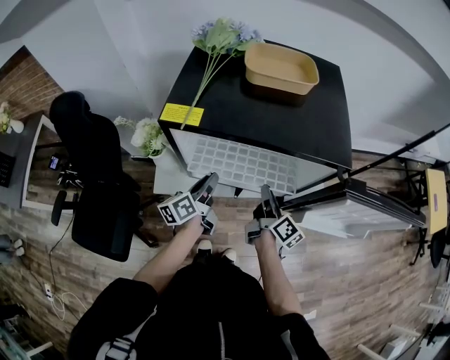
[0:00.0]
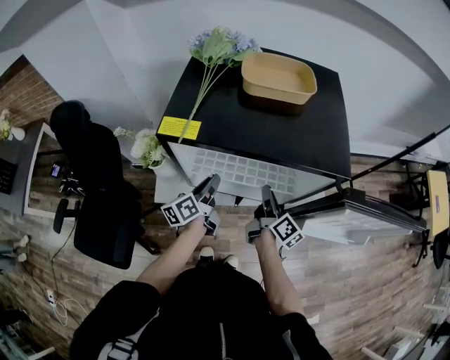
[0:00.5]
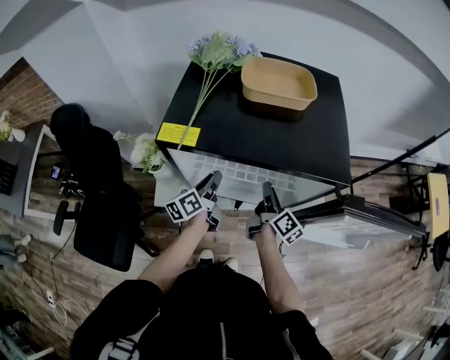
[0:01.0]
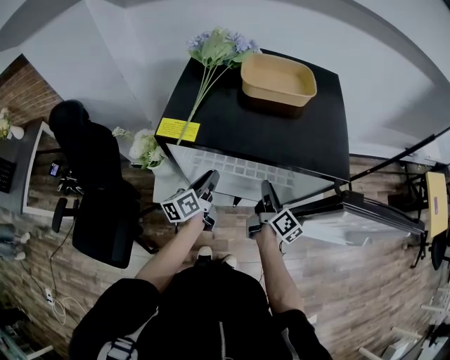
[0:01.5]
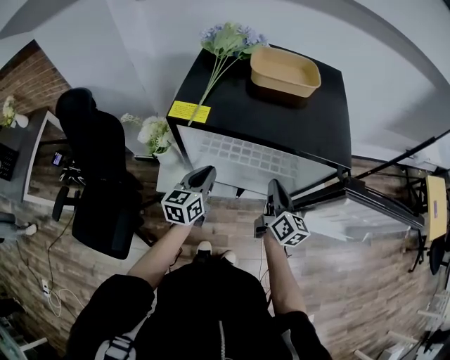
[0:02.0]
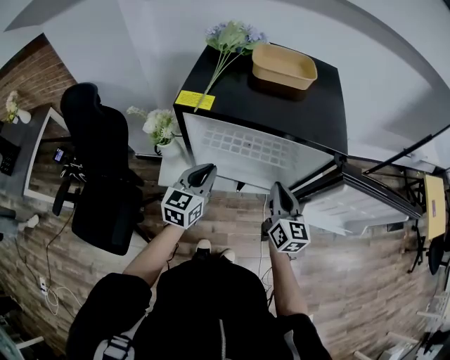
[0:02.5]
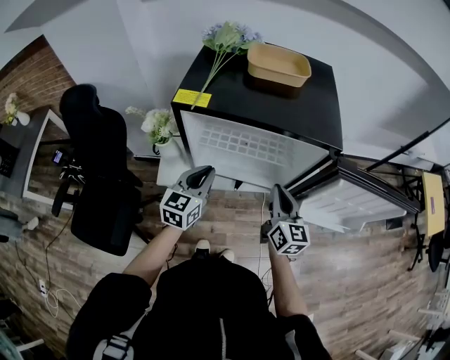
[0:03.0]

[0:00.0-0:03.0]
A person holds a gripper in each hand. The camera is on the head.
0:00.0 to 0:01.5: The right gripper travels forward by about 5 cm.
0:01.5 to 0:03.0: The grippers both shift backward and upward by roughly 10 cm. The right gripper rotates around the line of its fingers by some 40 degrees, counterclockwise from behind. Meanwhile the left gripper twists about 40 degrees clockwise, seen from behind.

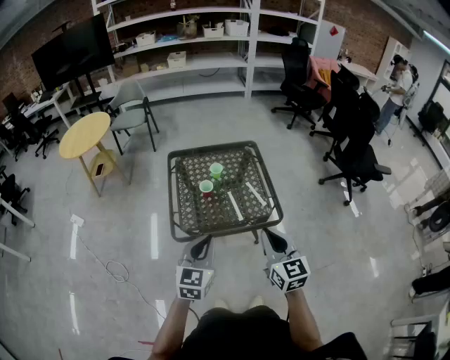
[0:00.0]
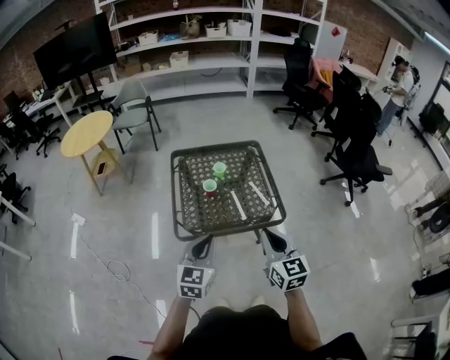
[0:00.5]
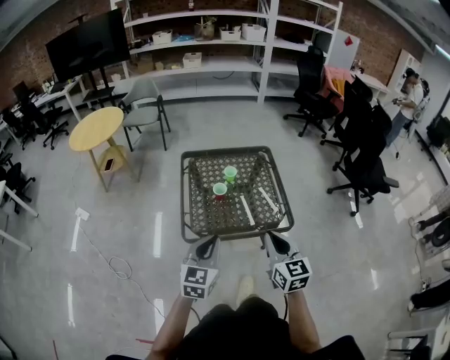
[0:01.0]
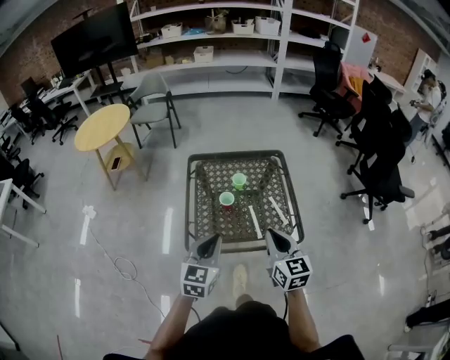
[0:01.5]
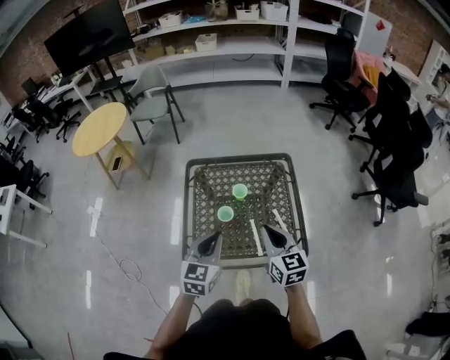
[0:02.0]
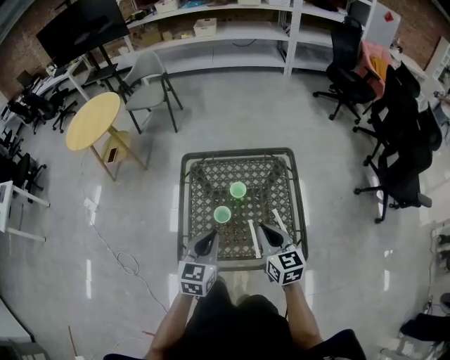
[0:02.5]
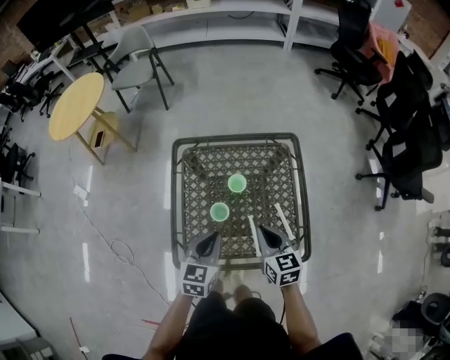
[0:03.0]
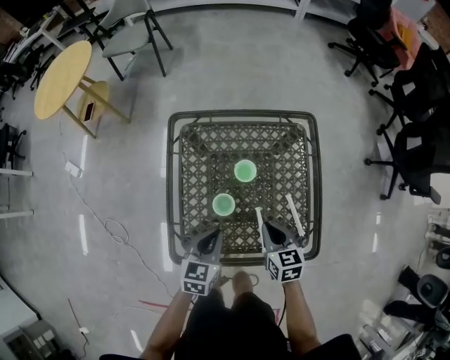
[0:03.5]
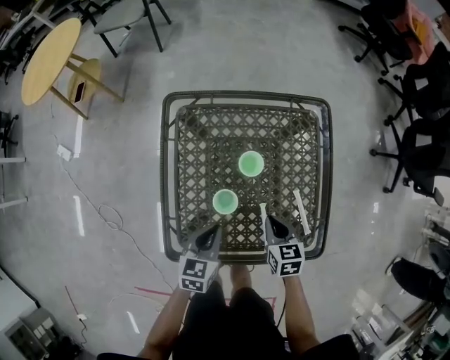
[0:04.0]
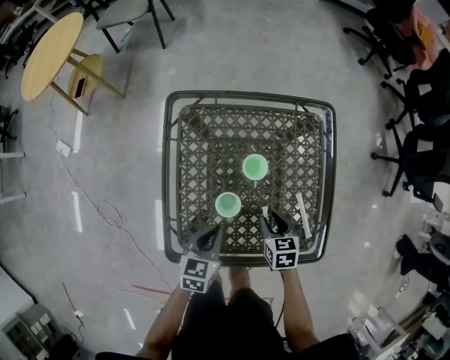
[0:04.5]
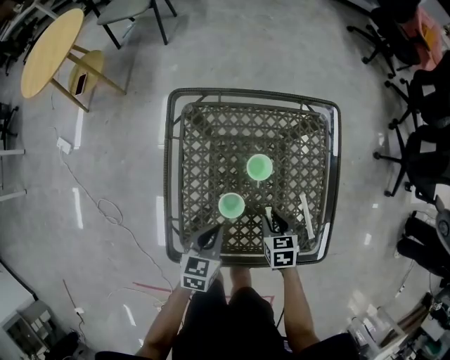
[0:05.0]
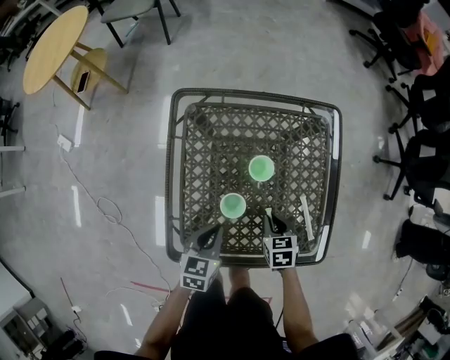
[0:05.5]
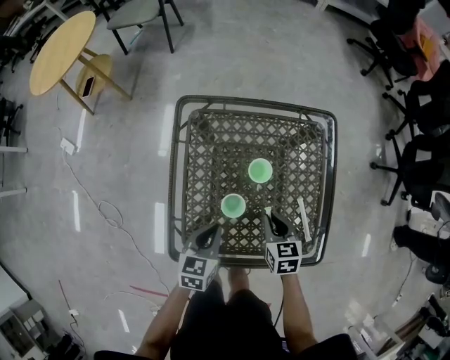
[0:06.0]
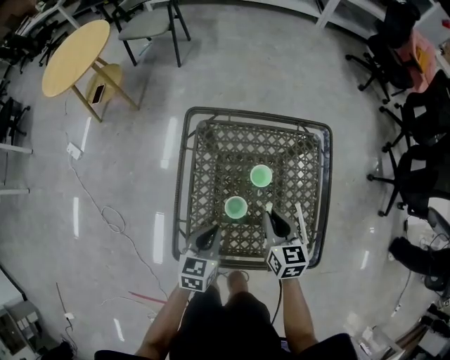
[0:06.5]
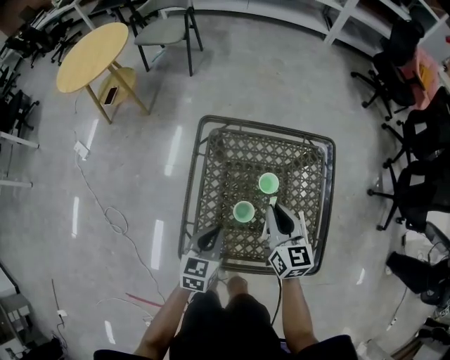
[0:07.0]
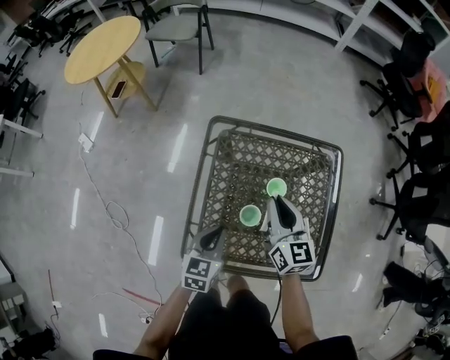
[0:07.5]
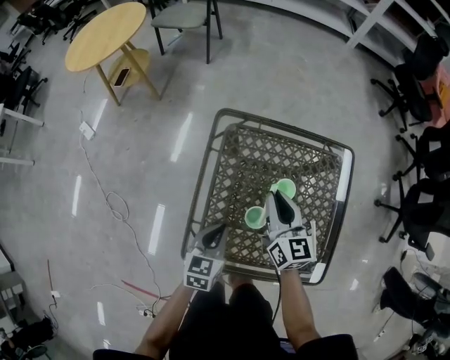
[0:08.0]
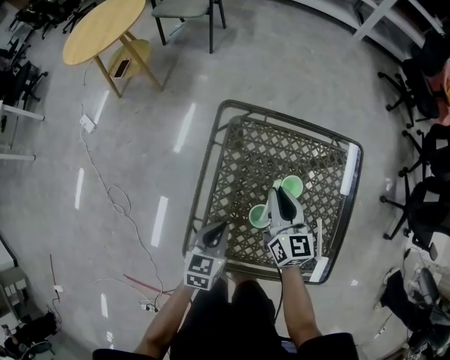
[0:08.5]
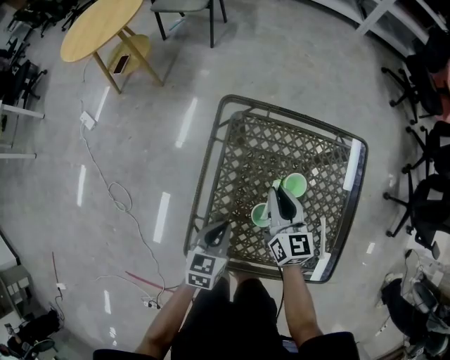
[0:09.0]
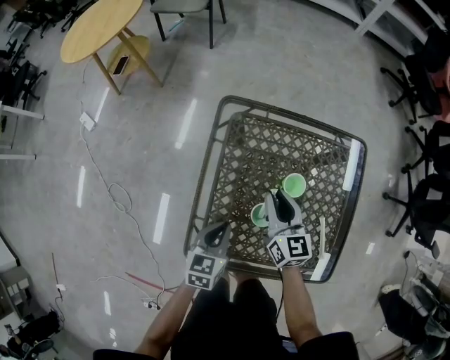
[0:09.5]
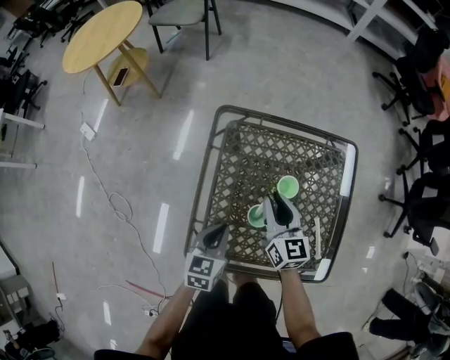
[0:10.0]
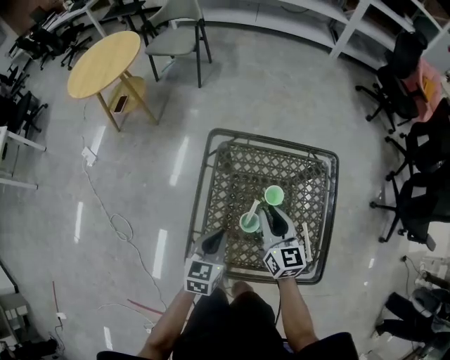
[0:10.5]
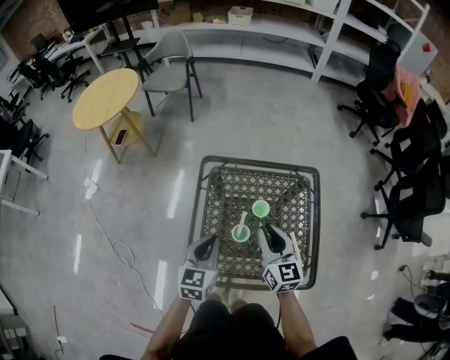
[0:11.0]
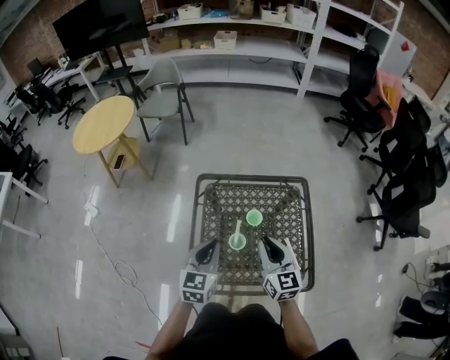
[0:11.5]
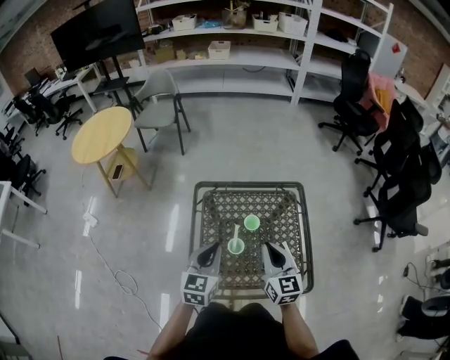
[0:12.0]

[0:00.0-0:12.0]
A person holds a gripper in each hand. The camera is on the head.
0:00.0 to 0:02.0: The two grippers go some 25 cm forward.
0:02.0 to 0:04.0: Both grippers travel together downward, about 30 cm. The left gripper swivels approximately 30 degrees, while the right gripper points its fingers approximately 30 degrees further downward.
0:04.0 to 0:06.0: The right gripper opens, then closes once more.
0:06.0 to 0:08.0: The right gripper shifts roughly 20 cm upward, forward and to the left, and tilts its fingers some 30 degrees upward, while the left gripper moves to the left, approximately 5 cm.
0:10.0 to 0:12.0: The right gripper goes some 25 cm upward, backward and to the right. Meanwhile the left gripper is displaced upward by about 25 cm, and changes its angle by some 20 degrees.

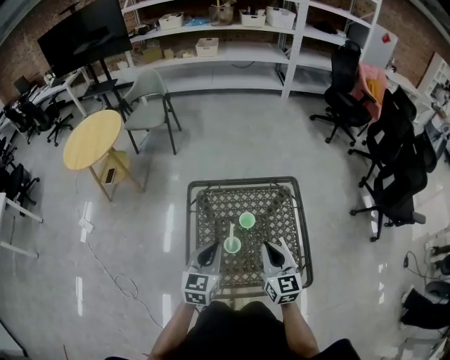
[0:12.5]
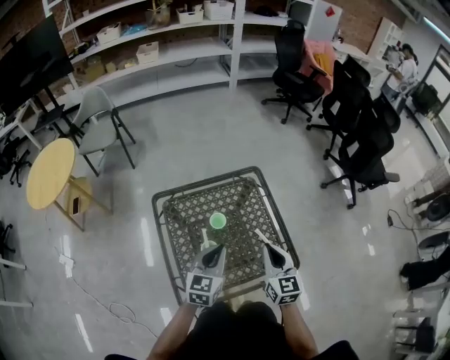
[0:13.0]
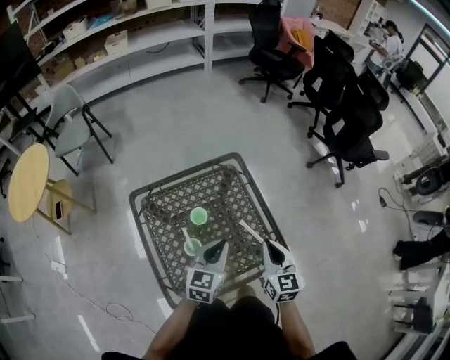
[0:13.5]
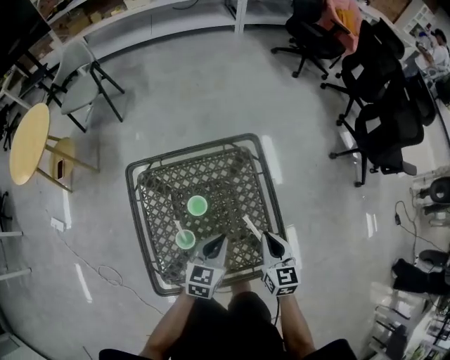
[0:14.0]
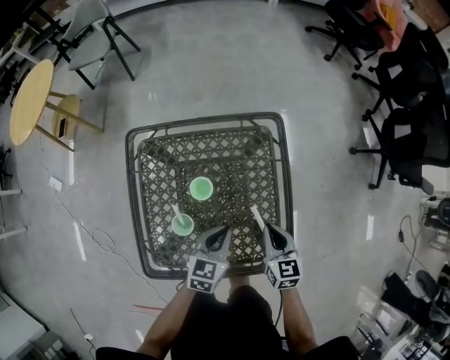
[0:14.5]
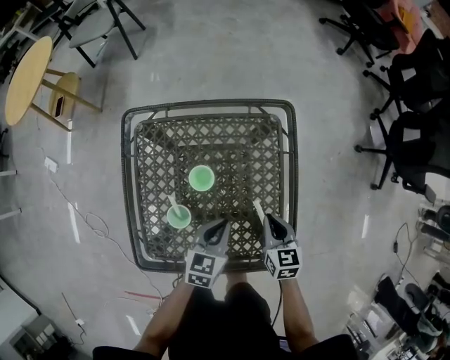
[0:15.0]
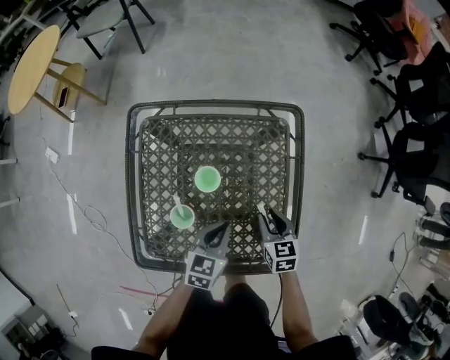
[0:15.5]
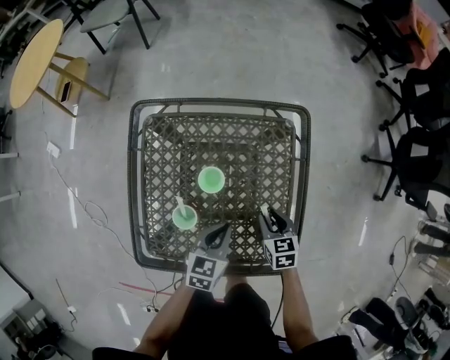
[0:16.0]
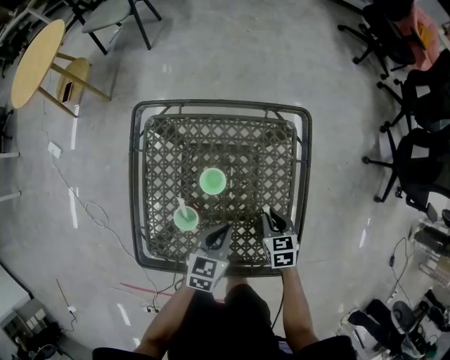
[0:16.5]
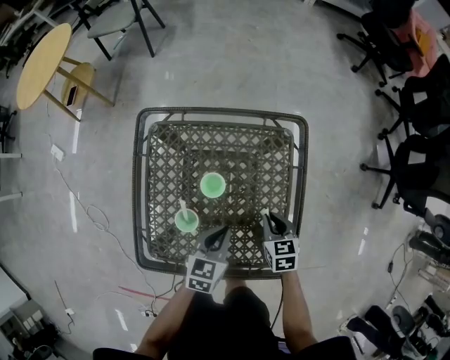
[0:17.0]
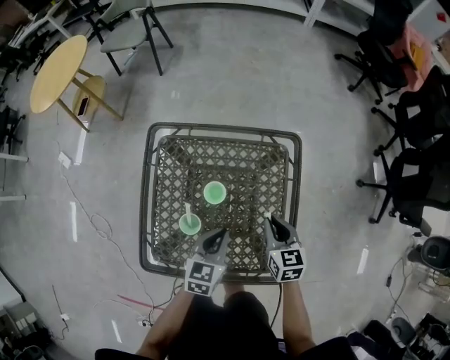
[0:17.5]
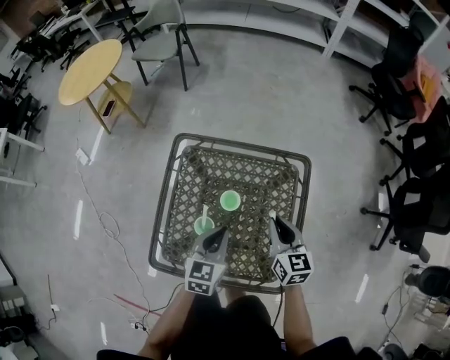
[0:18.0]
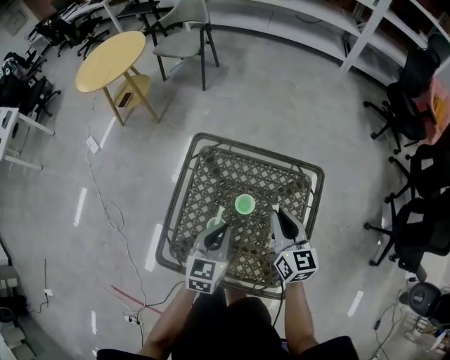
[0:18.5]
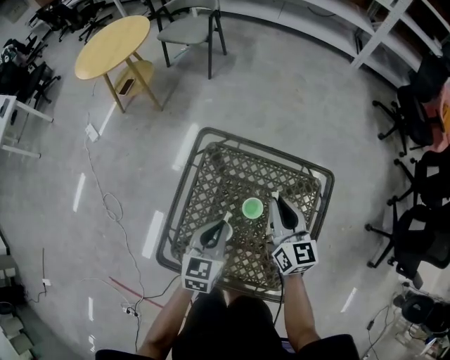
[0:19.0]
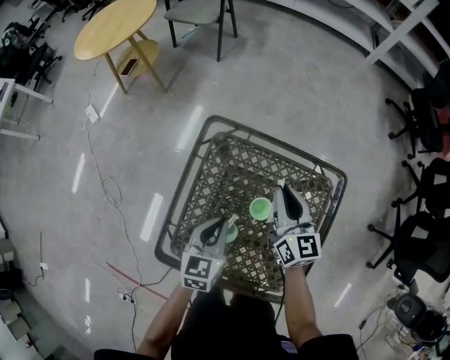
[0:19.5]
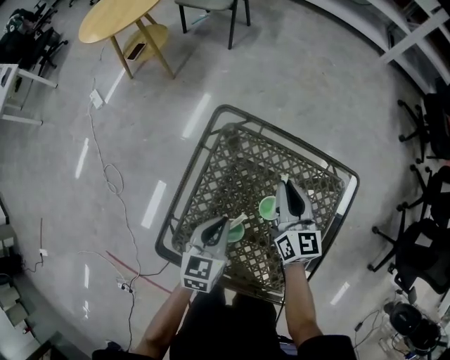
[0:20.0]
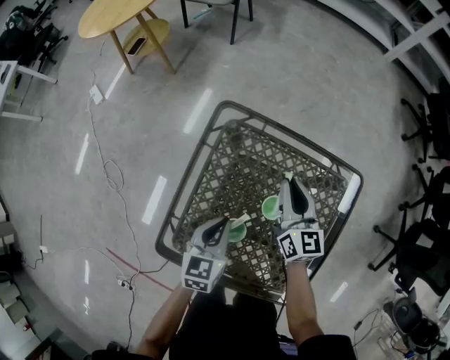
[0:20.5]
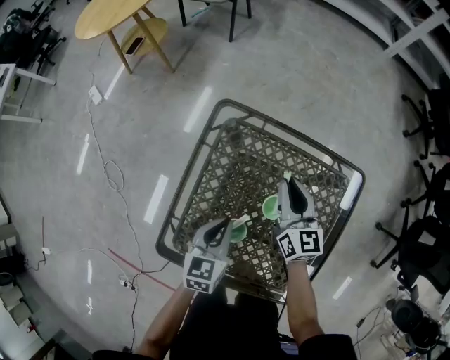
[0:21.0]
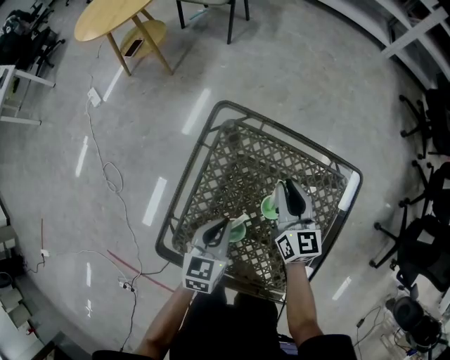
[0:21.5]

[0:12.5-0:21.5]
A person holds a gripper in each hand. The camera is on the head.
0:12.5 to 0:14.5: The two grippers go approximately 20 cm downward. The right gripper rotates roughly 20 degrees. Meanwhile the left gripper changes its angle by about 20 degrees.
0:14.5 to 0:17.0: The right gripper goes some 10 cm downward, and turns by approximately 20 degrees.
0:17.0 to 0:19.5: The left gripper moves to the left, upward and forward, approximately 20 cm, and swivels some 20 degrees. Meanwhile the right gripper moves upward, forward and to the left, approximately 30 cm, and tips its fingers upward by approximately 40 degrees.
0:19.5 to 0:21.5: The right gripper shifts some 5 cm downward. Meanwhile the left gripper shifts by roughly 5 cm.

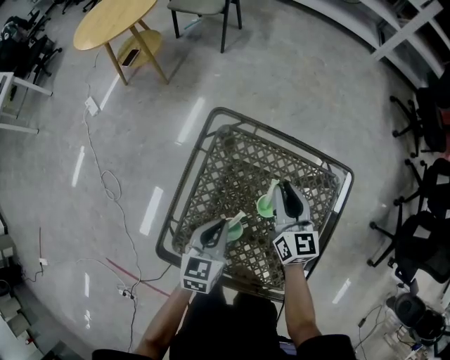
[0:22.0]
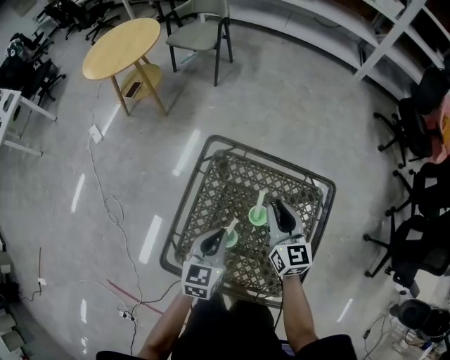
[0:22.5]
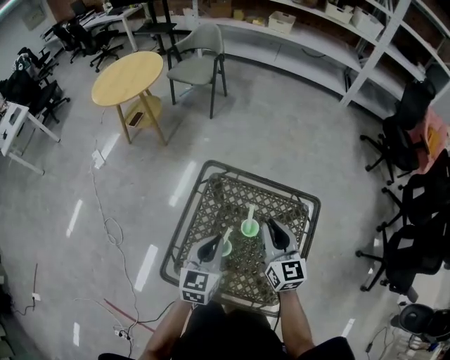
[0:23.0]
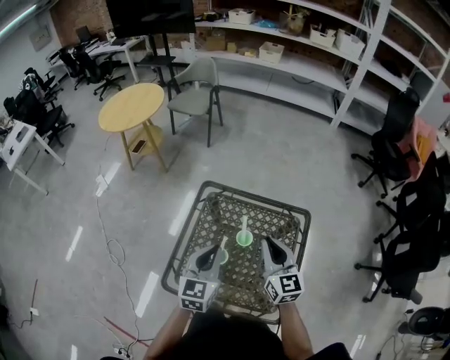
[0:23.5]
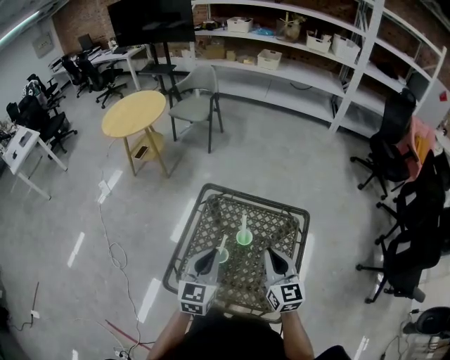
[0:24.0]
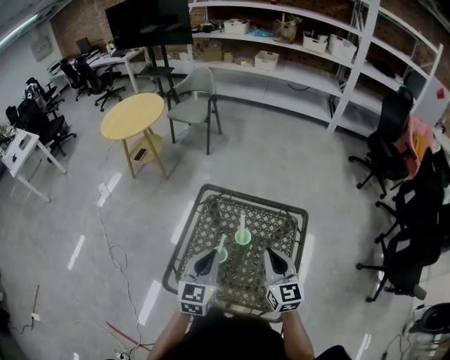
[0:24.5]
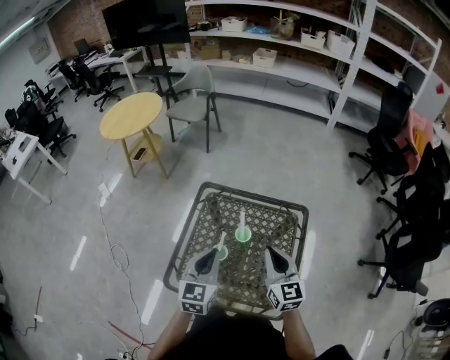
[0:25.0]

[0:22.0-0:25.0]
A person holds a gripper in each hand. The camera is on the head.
0:22.0 to 0:23.5: The right gripper shifts about 25 cm upward and backward. The left gripper travels upward by approximately 20 cm, and changes its angle by roughly 20 degrees.
0:23.5 to 0:25.0: The right gripper travels backward by some 5 cm.
